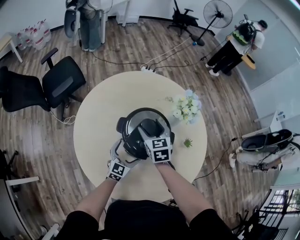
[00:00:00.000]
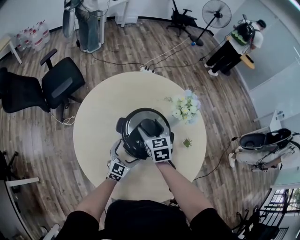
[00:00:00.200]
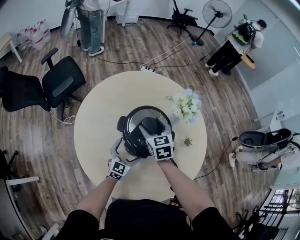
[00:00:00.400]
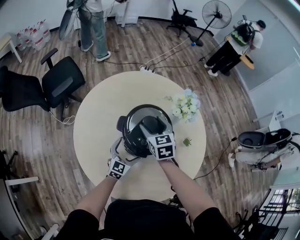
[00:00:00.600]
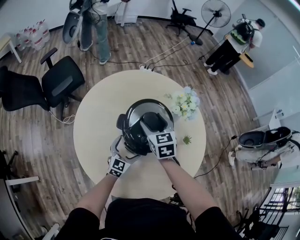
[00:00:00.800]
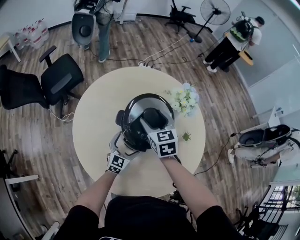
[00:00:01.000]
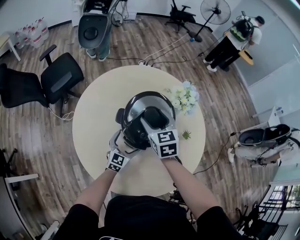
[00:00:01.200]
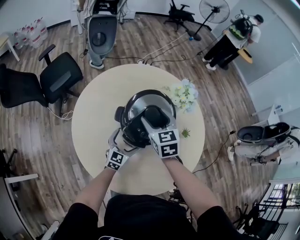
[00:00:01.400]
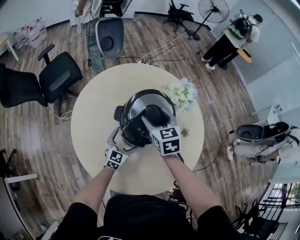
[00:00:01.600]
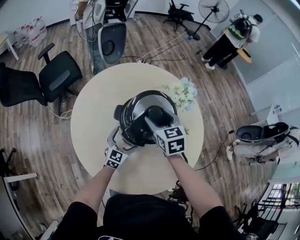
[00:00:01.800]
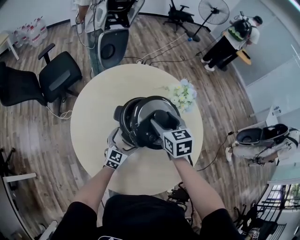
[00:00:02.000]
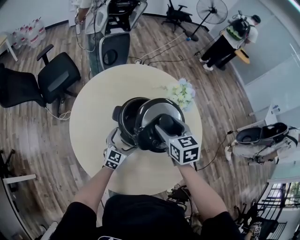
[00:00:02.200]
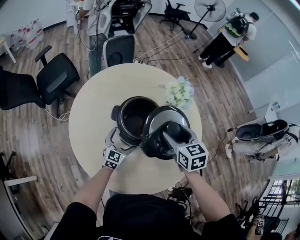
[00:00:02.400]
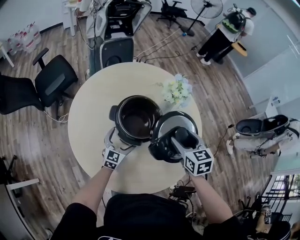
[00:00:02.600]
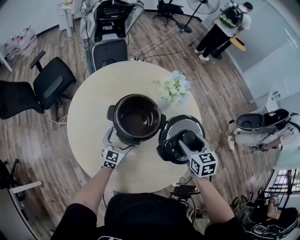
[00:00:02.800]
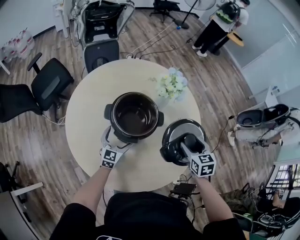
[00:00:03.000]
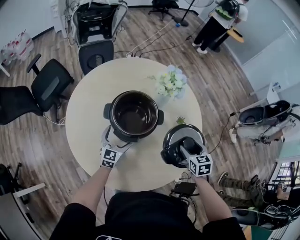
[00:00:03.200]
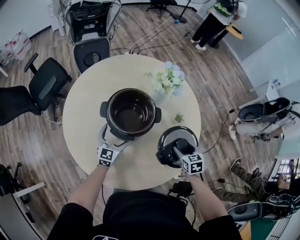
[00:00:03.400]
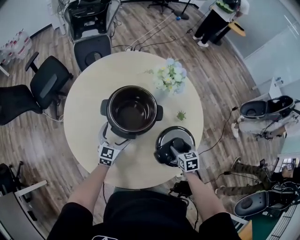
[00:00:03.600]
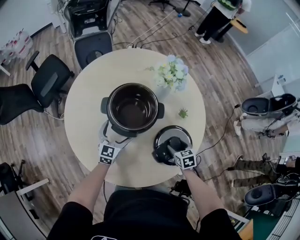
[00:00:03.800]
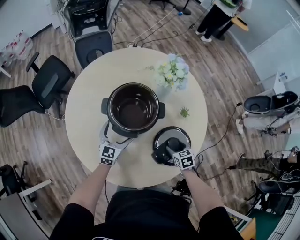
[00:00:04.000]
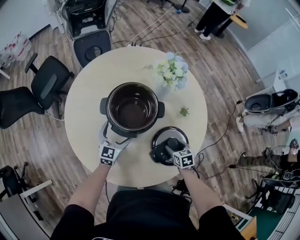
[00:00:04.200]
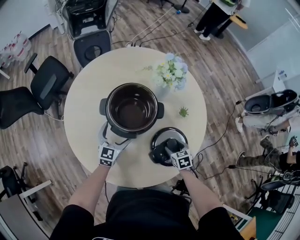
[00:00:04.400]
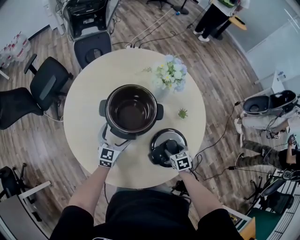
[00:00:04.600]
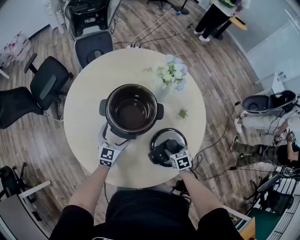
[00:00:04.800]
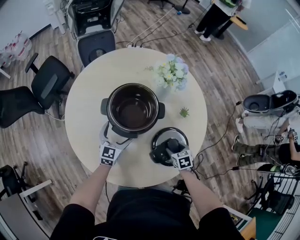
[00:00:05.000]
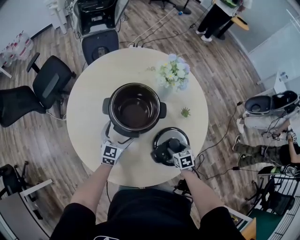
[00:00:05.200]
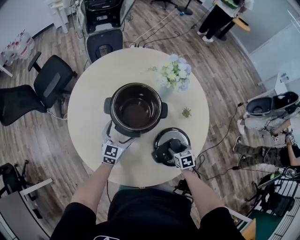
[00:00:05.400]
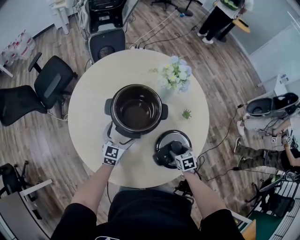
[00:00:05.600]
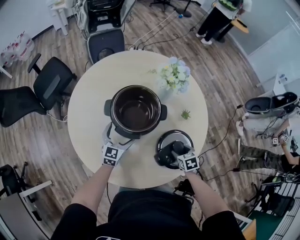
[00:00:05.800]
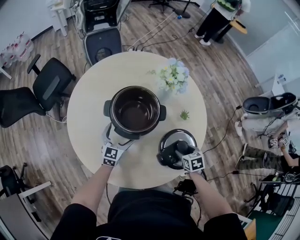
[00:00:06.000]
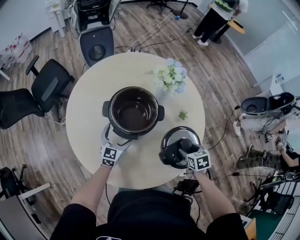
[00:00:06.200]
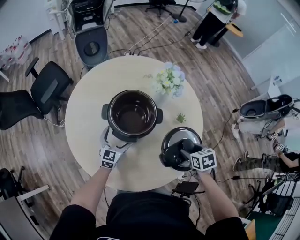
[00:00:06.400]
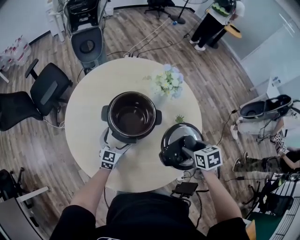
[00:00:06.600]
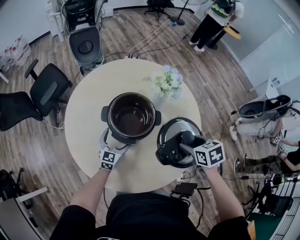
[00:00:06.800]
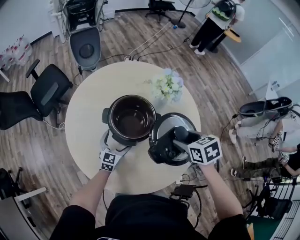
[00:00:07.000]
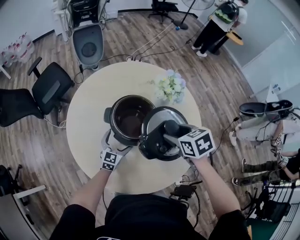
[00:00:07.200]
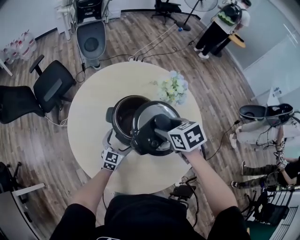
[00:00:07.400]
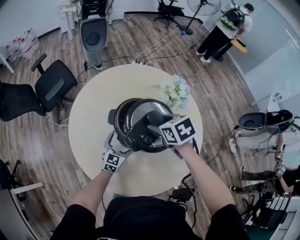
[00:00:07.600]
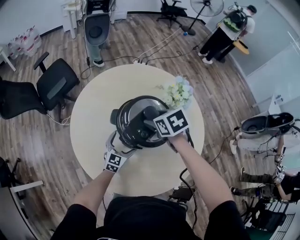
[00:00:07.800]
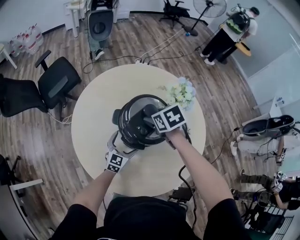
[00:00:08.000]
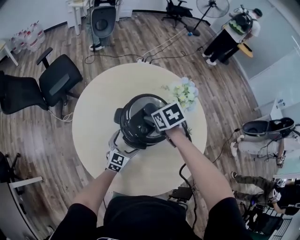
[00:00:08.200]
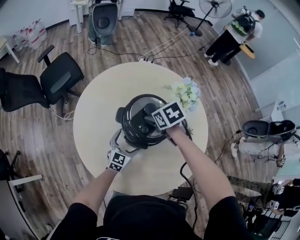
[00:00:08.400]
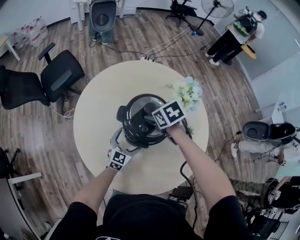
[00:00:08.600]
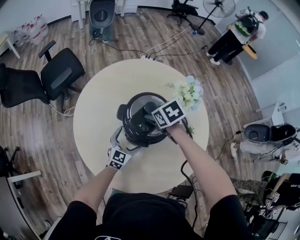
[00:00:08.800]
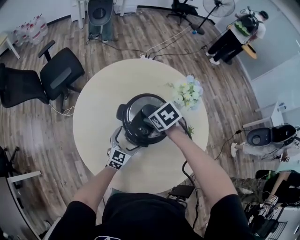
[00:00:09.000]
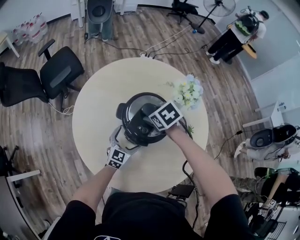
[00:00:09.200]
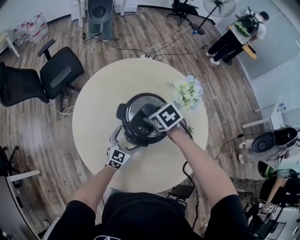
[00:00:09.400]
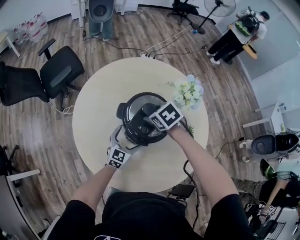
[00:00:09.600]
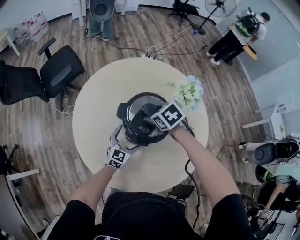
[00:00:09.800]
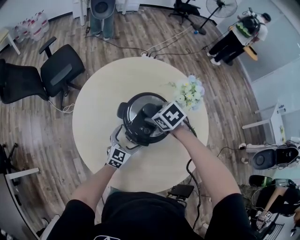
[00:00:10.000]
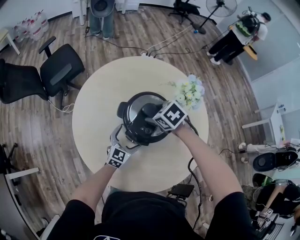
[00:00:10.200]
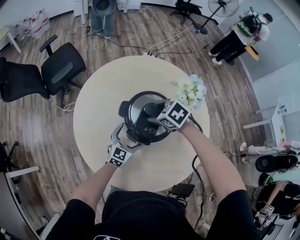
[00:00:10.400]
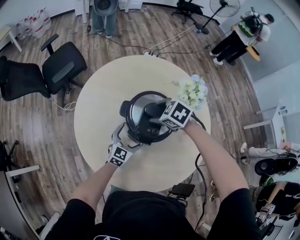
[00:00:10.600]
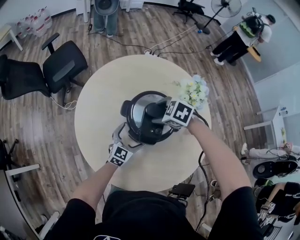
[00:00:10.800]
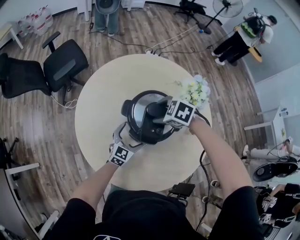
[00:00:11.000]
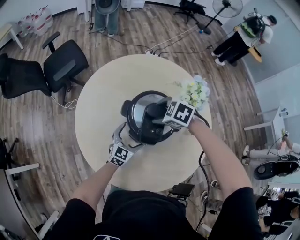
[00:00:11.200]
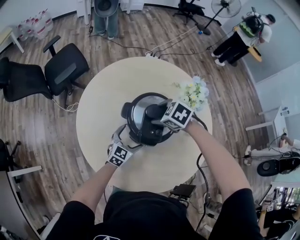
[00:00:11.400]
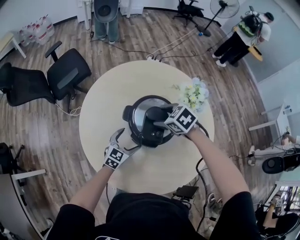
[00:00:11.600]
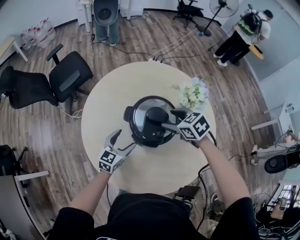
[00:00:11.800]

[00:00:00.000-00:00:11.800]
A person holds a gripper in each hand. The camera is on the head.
00:00:00.000 to 00:00:01.400: The right gripper is displaced upward by some 5 cm.
00:00:01.400 to 00:00:03.000: The right gripper is displaced to the right and backward by approximately 30 cm, and turns by approximately 20 degrees.
00:00:03.000 to 00:00:04.400: The right gripper goes about 20 cm downward.
00:00:04.400 to 00:00:06.000: The right gripper shifts about 5 cm upward.
00:00:06.000 to 00:00:07.400: The right gripper is displaced upward, to the left and forward by approximately 30 cm, and turns by approximately 20 degrees.
00:00:07.400 to 00:00:08.800: The right gripper travels forward, to the left and downward by about 15 cm.
00:00:08.800 to 00:00:10.400: The right gripper rotates approximately 30 degrees.
00:00:10.400 to 00:00:11.800: The left gripper shifts about 10 cm to the left and upward. Meanwhile the right gripper shifts by approximately 5 cm.

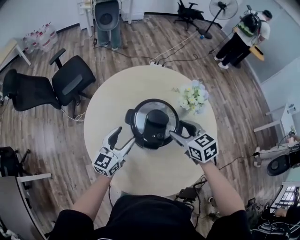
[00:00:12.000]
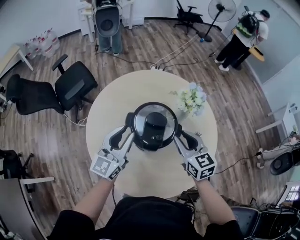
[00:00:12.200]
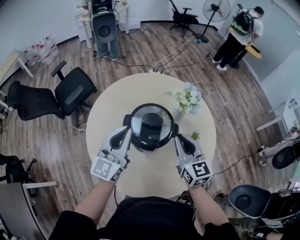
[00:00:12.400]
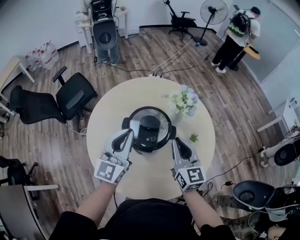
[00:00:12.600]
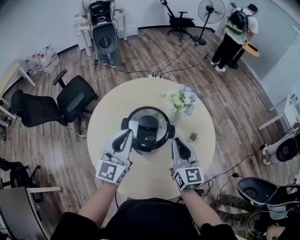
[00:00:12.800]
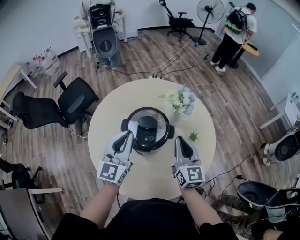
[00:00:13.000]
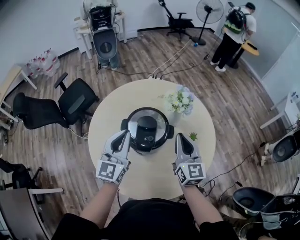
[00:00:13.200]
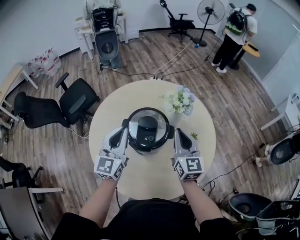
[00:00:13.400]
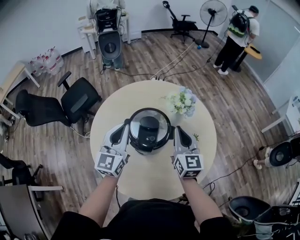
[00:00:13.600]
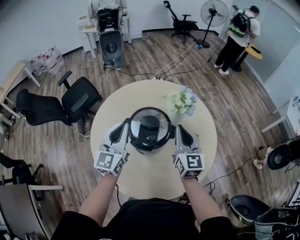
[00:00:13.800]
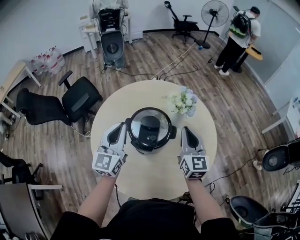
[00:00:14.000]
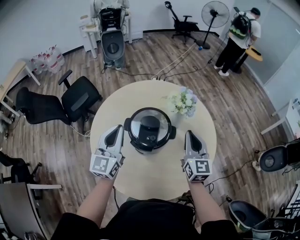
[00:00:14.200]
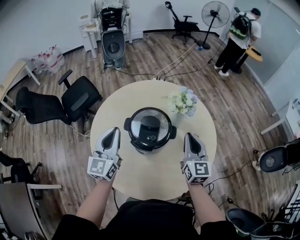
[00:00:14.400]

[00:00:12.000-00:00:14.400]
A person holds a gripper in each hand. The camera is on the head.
00:00:12.000 to 00:00:13.200: The right gripper moves upward, to the right and backward, approximately 10 cm, angles its fingers upward, by roughly 40 degrees, and closes. The left gripper goes about 15 cm upward, and closes.
00:00:13.200 to 00:00:14.400: The left gripper goes approximately 5 cm to the left.

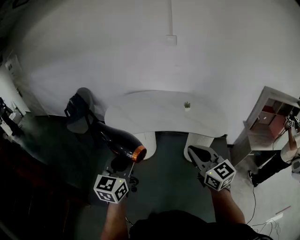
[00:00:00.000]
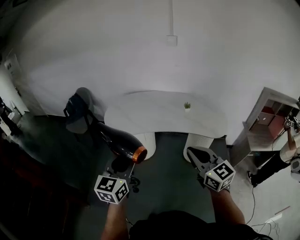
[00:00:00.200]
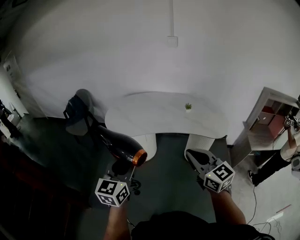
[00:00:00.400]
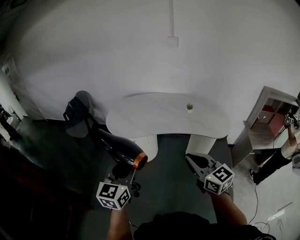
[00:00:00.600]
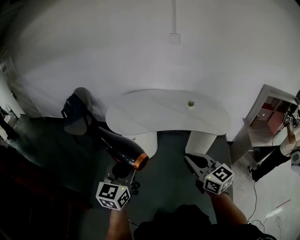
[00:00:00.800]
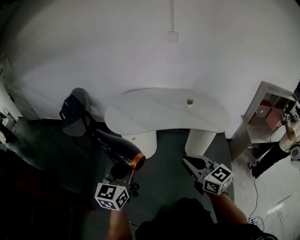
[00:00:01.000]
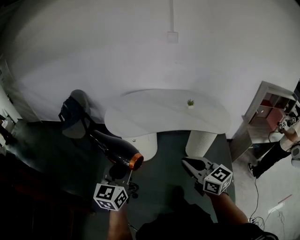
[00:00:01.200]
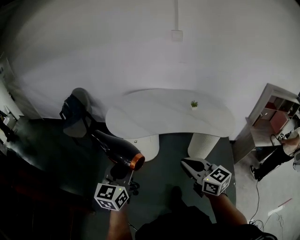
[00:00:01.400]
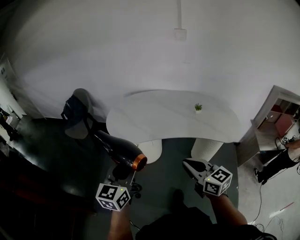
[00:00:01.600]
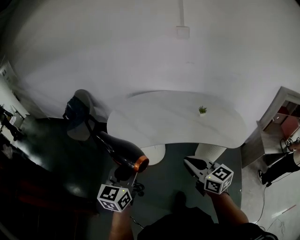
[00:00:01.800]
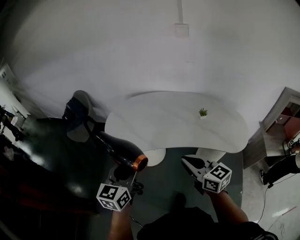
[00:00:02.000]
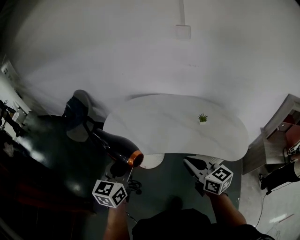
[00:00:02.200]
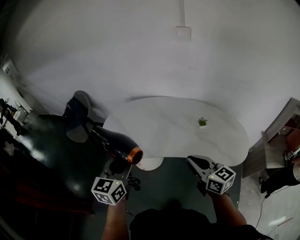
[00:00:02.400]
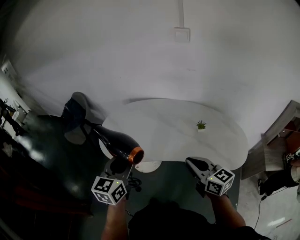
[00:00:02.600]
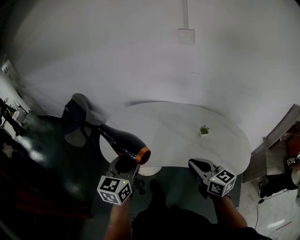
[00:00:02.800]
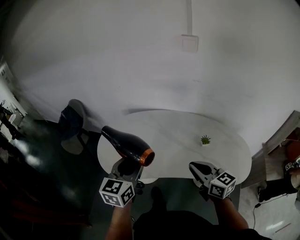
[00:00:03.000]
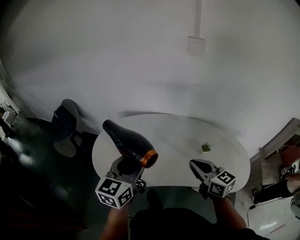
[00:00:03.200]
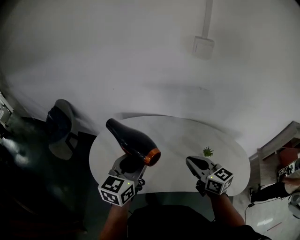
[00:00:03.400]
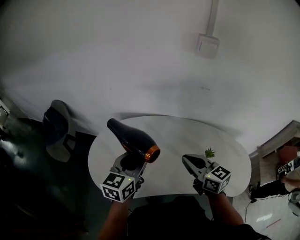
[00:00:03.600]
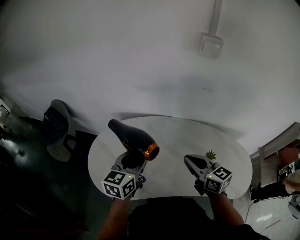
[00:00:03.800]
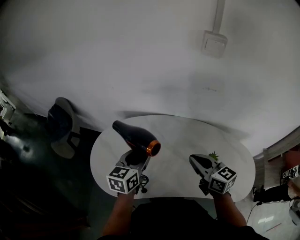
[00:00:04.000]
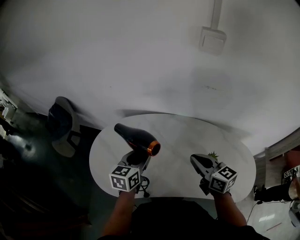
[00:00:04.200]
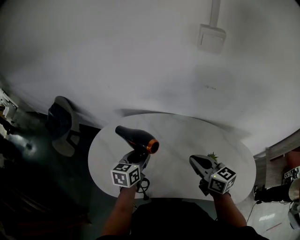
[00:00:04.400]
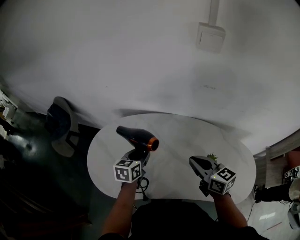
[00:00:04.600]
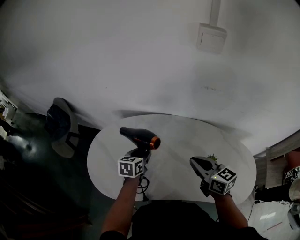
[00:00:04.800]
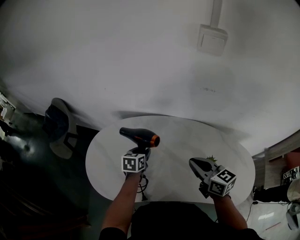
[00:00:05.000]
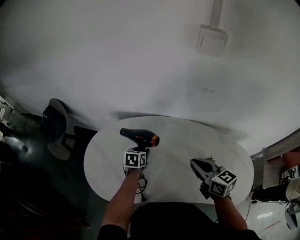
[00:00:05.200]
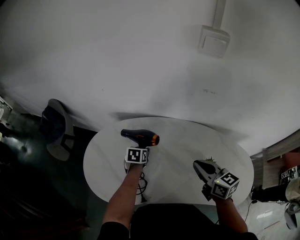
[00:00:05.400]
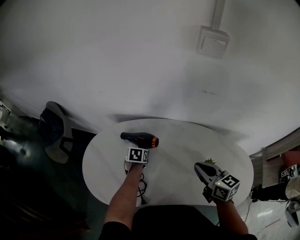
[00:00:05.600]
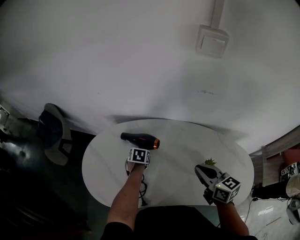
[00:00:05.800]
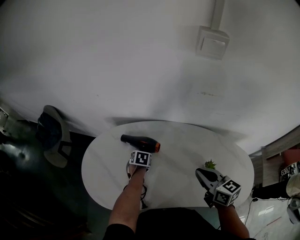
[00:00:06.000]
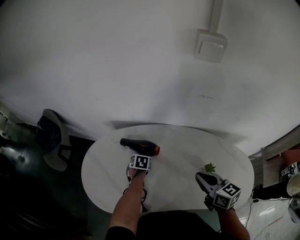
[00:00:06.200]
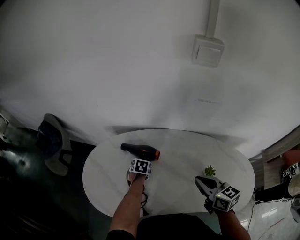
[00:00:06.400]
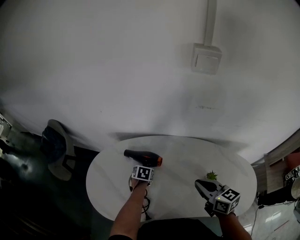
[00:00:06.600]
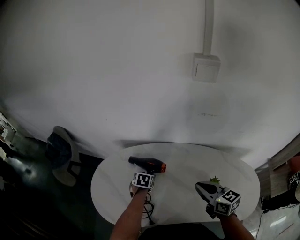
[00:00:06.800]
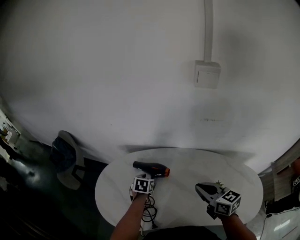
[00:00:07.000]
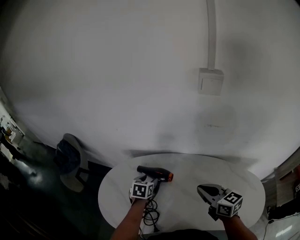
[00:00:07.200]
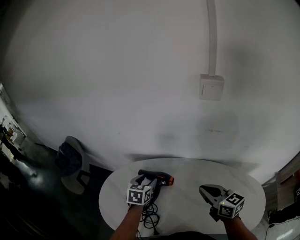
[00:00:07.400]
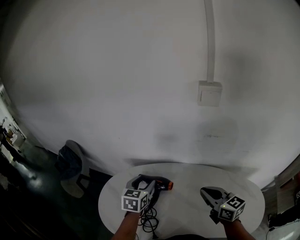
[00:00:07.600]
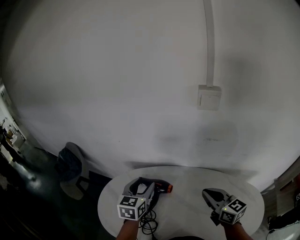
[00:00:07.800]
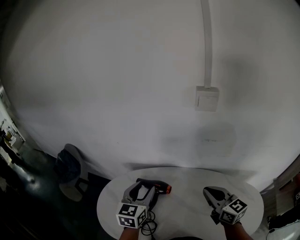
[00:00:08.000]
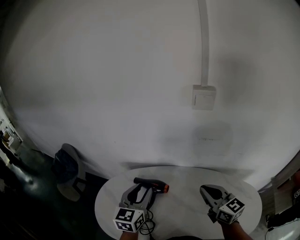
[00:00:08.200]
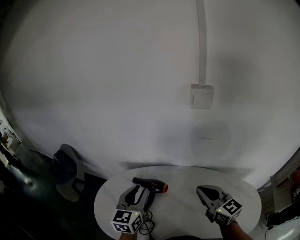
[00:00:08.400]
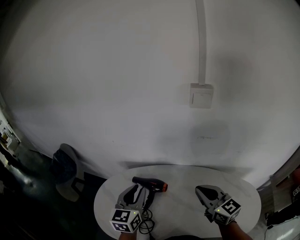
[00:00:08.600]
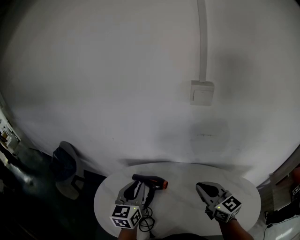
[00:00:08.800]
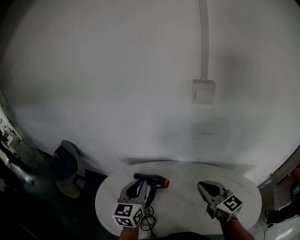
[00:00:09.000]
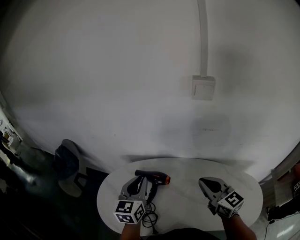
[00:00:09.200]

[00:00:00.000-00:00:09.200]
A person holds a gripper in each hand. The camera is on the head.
00:00:00.000 to 00:00:01.600: The right gripper travels forward, to the left and downward by some 15 cm; the left gripper heads forward and to the left, covering roughly 15 cm.
00:00:01.600 to 00:00:03.000: The two grippers go roughly 30 cm forward and to the right.
00:00:03.000 to 00:00:04.600: The left gripper moves forward and downward, approximately 30 cm, and swivels about 30 degrees. The right gripper moves forward, some 20 cm.
00:00:04.600 to 00:00:06.200: The left gripper is displaced downward by some 20 cm, and points its fingers some 30 degrees further downward.
00:00:06.200 to 00:00:07.600: The left gripper goes about 30 cm upward, and tilts its fingers approximately 40 degrees upward; the right gripper heads upward, covering approximately 5 cm.
00:00:07.600 to 00:00:09.200: The left gripper shifts roughly 10 cm upward, and closes its fingers.
